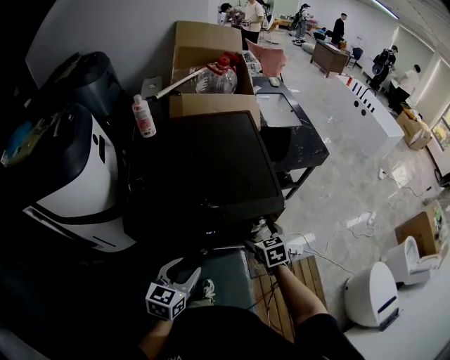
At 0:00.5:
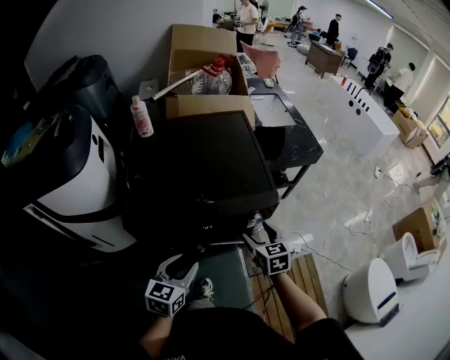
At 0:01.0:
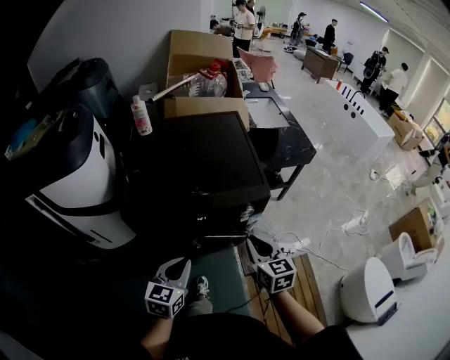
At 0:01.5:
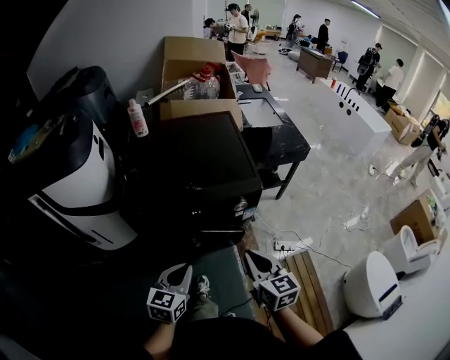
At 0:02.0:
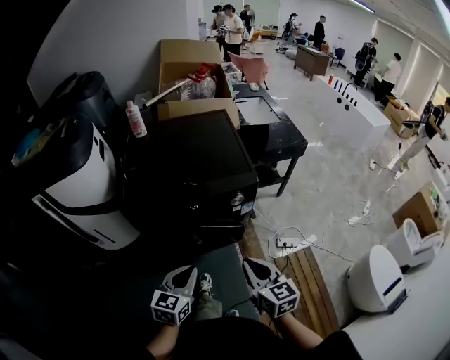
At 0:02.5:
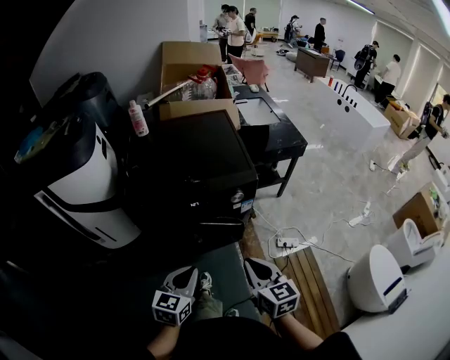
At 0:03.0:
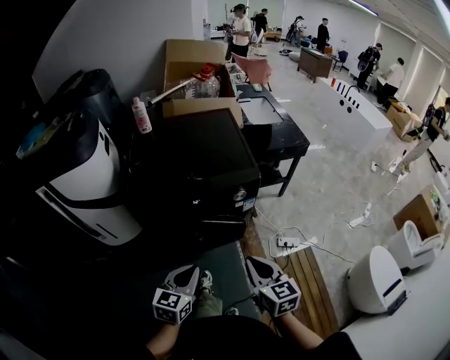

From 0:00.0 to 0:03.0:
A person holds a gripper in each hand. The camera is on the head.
From 0:00.0 to 0:01.5: The left gripper is displaced backward by some 10 cm, and closes its fingers. Meanwhile the right gripper travels backward and upward by about 25 cm, swivels roughly 30 degrees, and closes up.
From 0:01.5 to 0:03.0: Both grippers move backward, about 5 cm.

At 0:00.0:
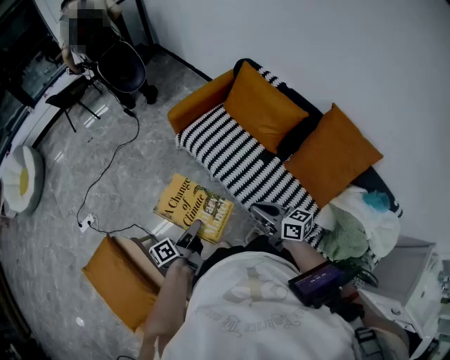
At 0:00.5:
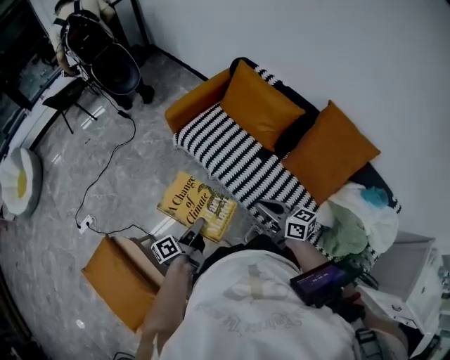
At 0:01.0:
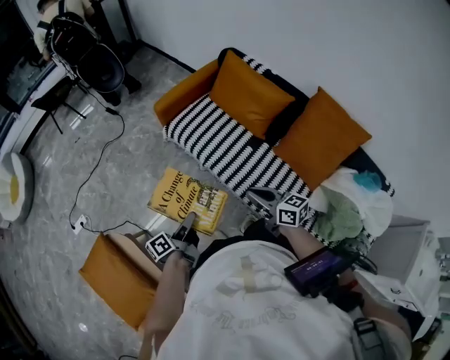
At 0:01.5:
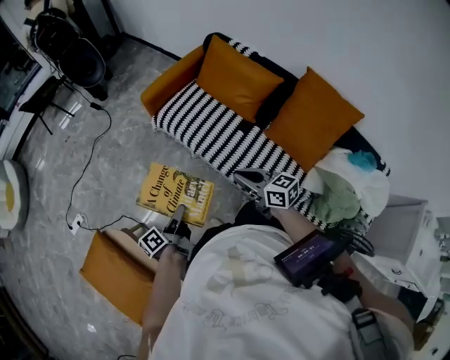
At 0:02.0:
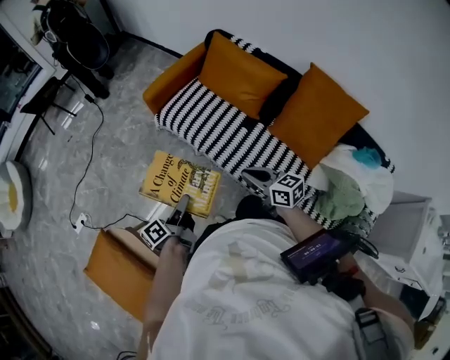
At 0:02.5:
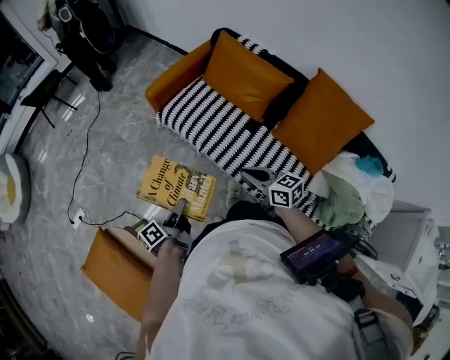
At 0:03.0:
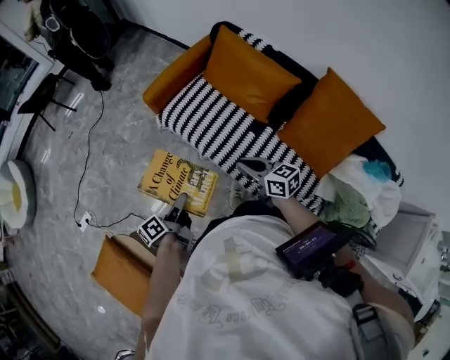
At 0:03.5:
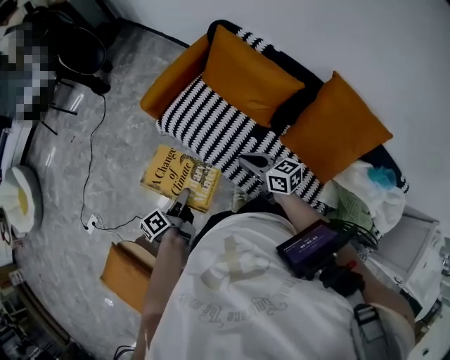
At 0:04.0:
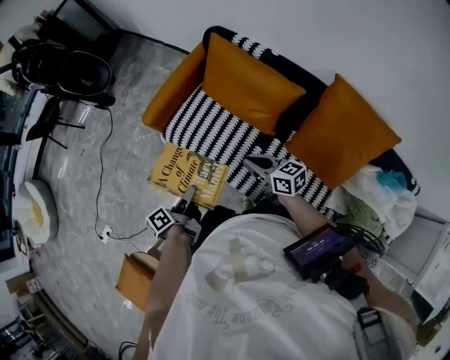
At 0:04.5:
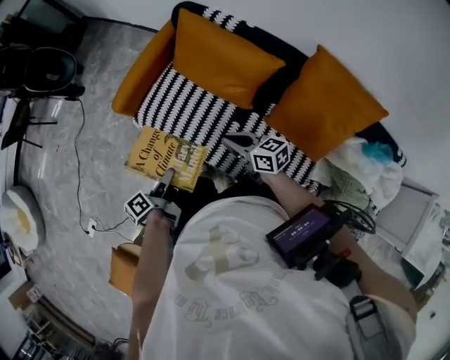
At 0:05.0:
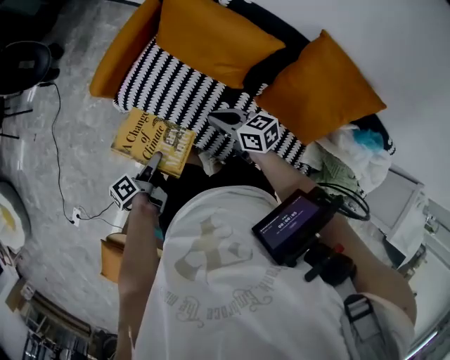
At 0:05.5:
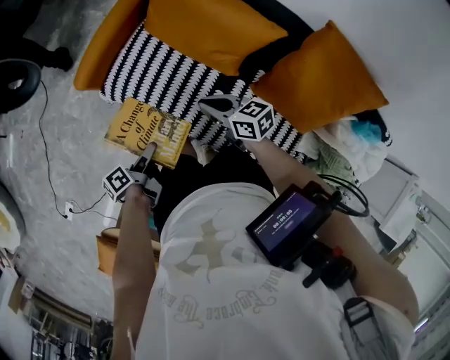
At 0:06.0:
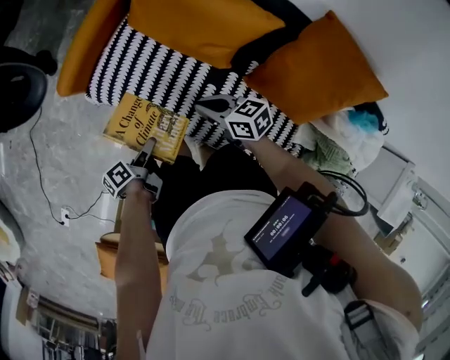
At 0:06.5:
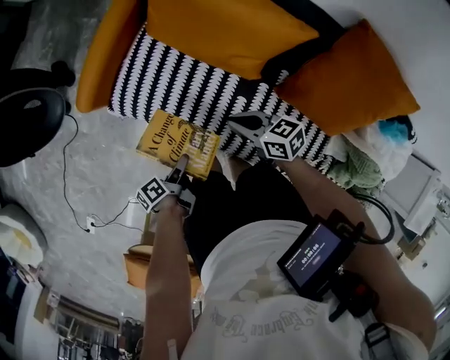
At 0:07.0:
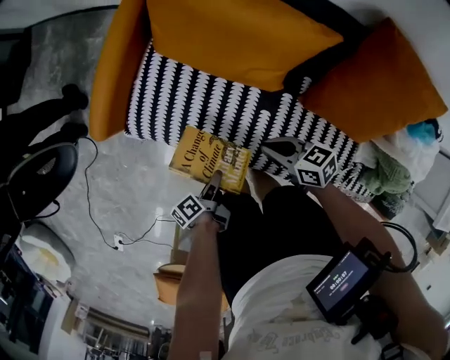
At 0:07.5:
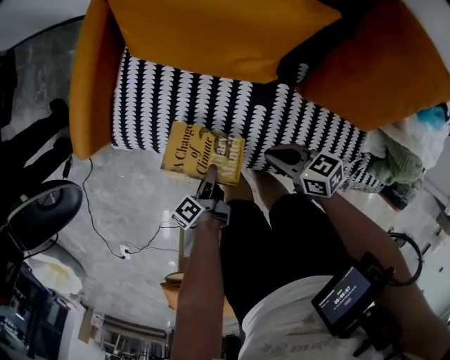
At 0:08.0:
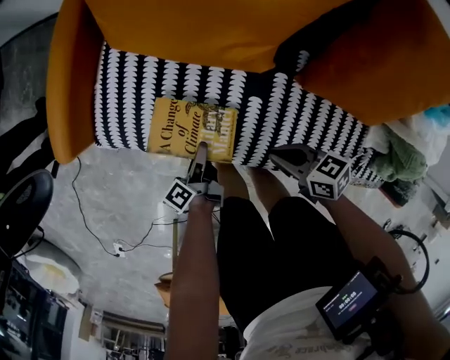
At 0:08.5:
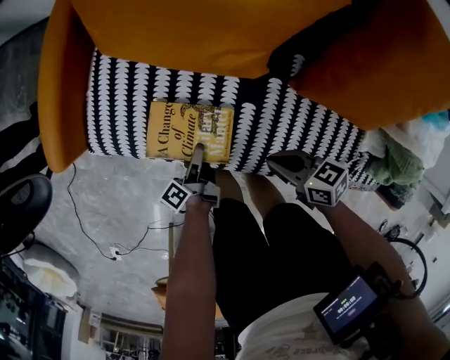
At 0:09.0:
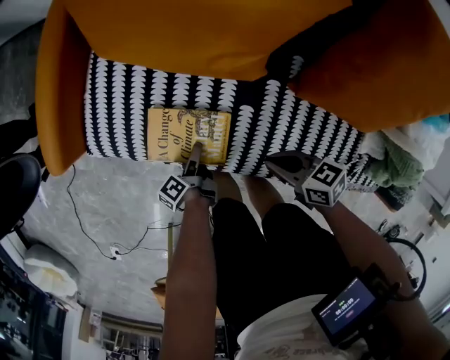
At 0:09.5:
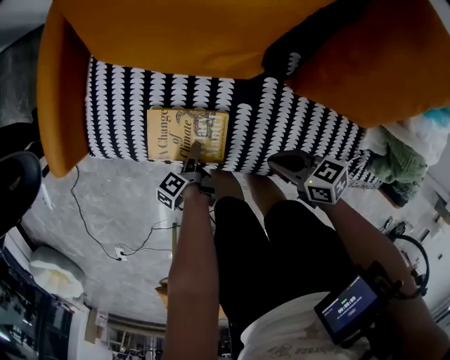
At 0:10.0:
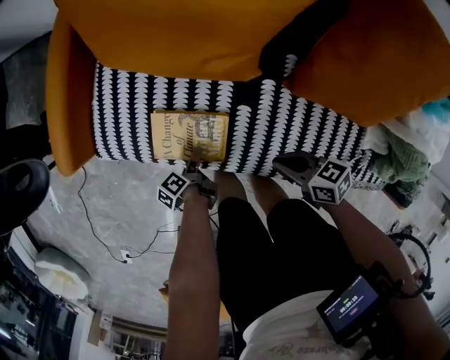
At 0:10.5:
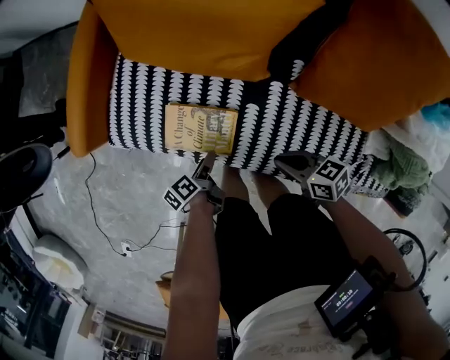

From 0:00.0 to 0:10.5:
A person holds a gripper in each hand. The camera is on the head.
From 0:02.0 to 0:04.0: The right gripper moves approximately 25 cm.
From 0:04.0 to 0:06.5: The right gripper goes about 15 cm downward.
From 0:06.5 to 0:08.5: The right gripper shifts some 15 cm downward.

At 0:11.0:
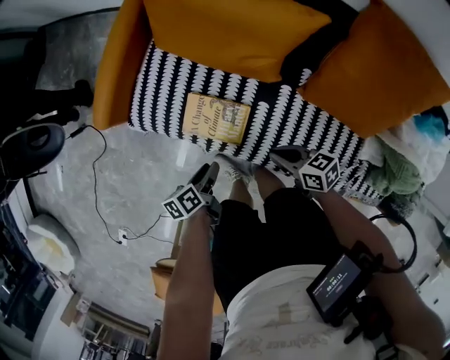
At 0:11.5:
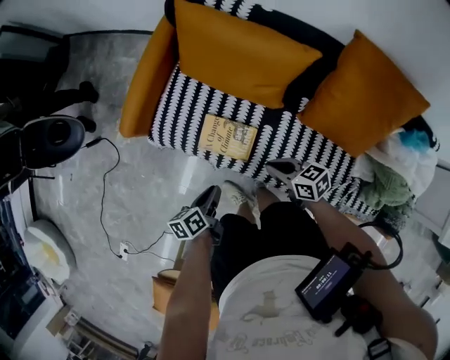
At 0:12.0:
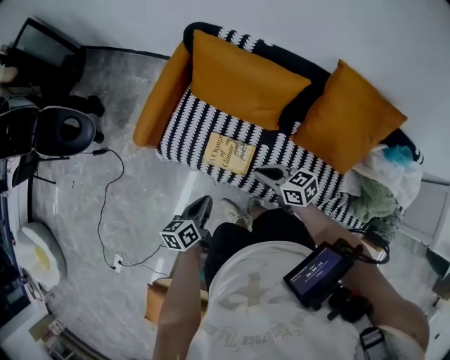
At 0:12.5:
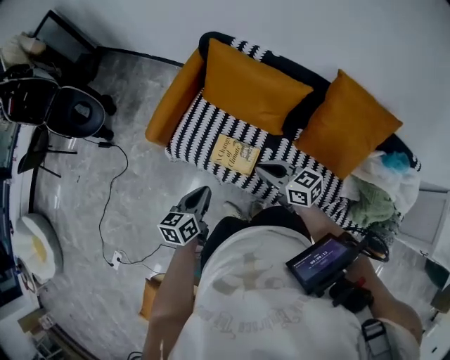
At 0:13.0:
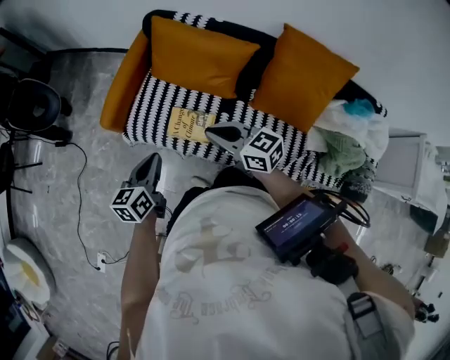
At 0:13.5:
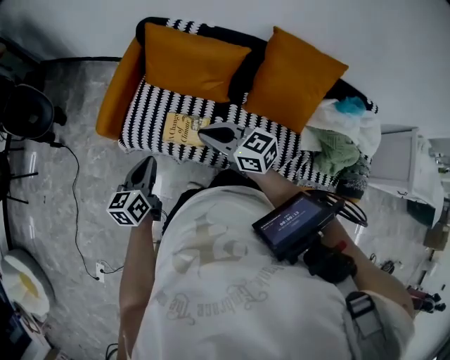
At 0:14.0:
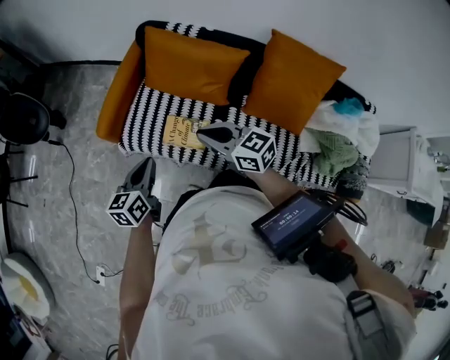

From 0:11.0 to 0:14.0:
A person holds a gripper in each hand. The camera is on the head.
From 0:11.0 to 0:12.5: The right gripper heads upward, covering approximately 25 cm, and swivels roughly 30 degrees.
From 0:12.5 to 0:14.0: The right gripper shifts about 5 cm upward.

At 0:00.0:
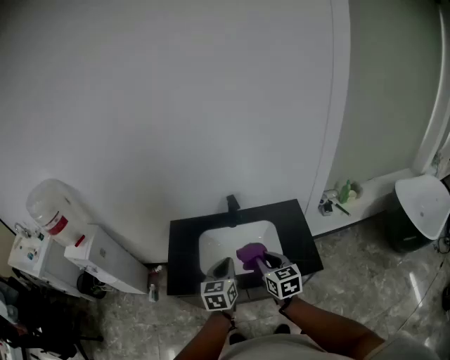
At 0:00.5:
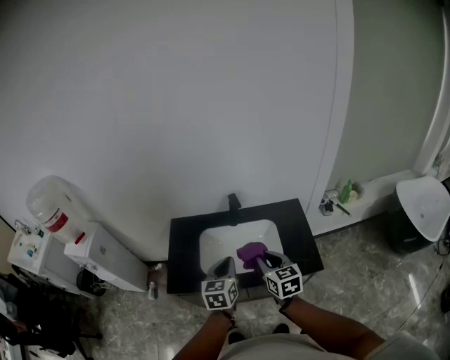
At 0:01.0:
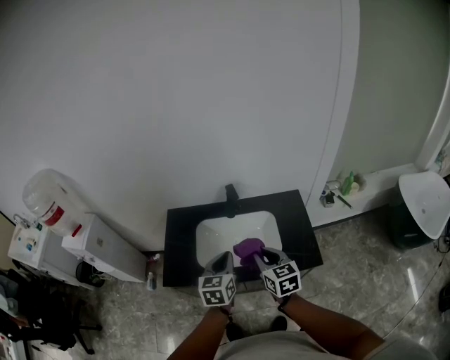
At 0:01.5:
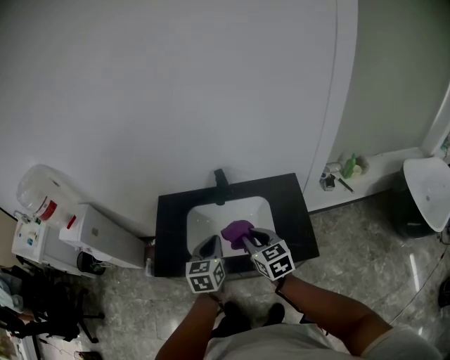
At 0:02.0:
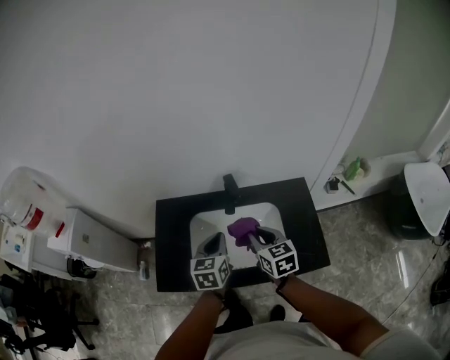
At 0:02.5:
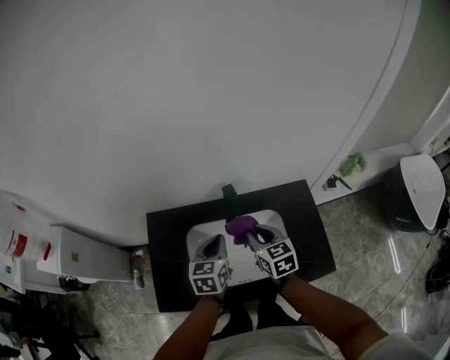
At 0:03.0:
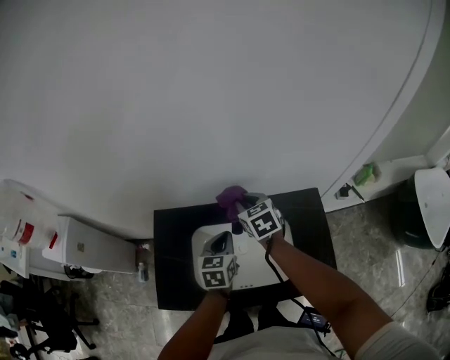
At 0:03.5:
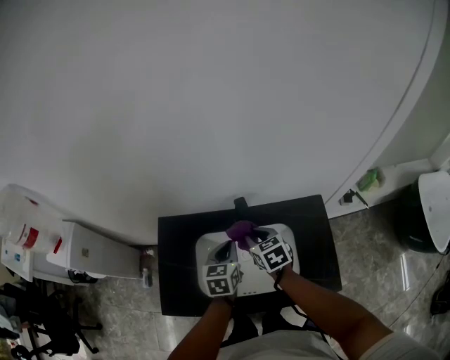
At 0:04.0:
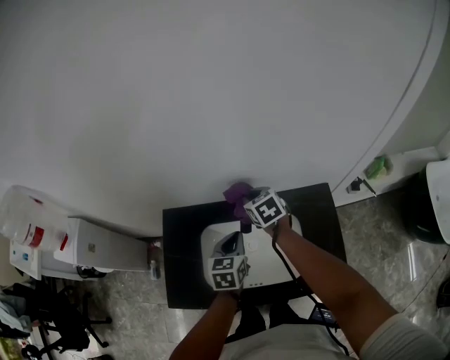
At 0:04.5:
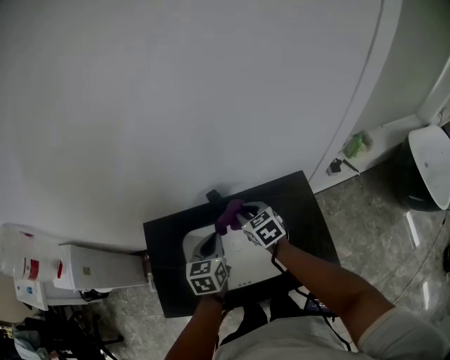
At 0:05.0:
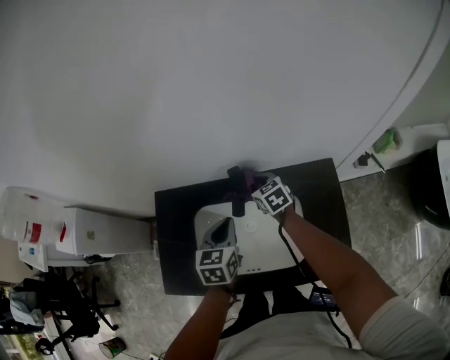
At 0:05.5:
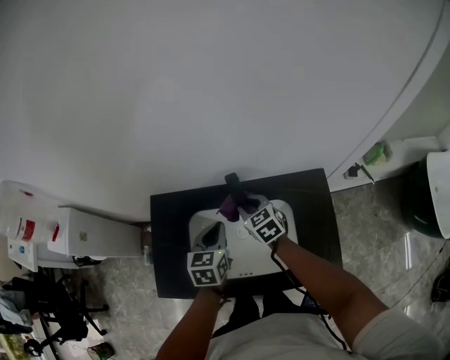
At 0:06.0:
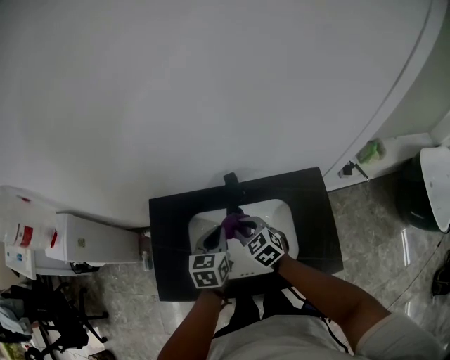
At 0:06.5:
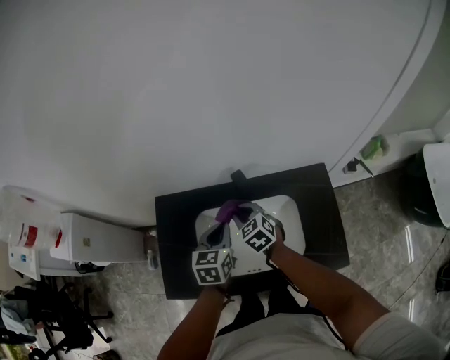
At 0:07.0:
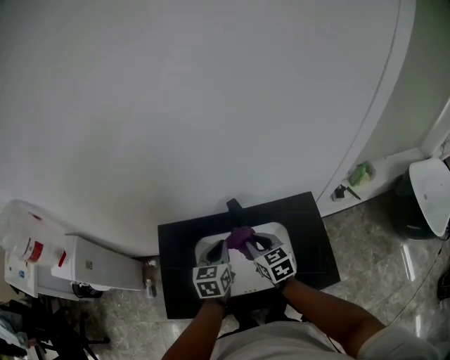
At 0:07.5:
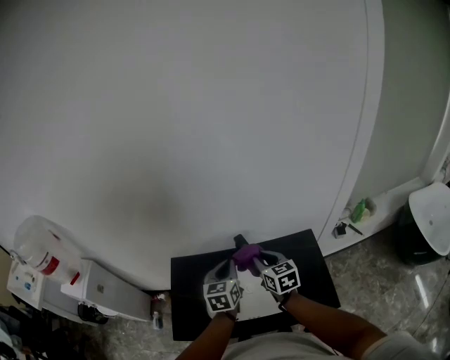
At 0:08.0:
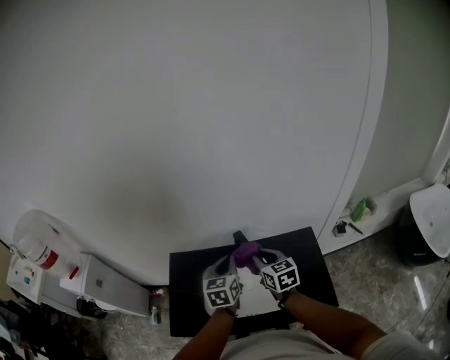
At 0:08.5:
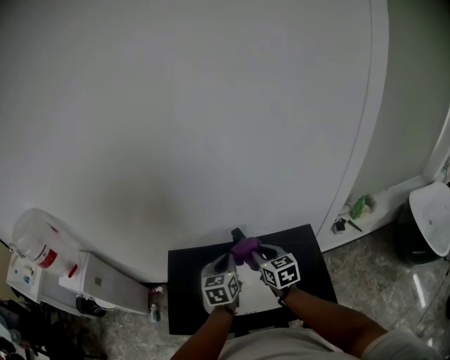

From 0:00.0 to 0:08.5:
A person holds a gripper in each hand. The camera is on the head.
From 0:00.0 to 0:02.0: The two grippers go approximately 15 cm forward and downward.
From 0:02.0 to 0:04.0: The right gripper goes forward and backward, about 25 cm each way, reversing 2 times. Meanwhile the left gripper shifts approximately 15 cm forward and downward.
From 0:04.0 to 0:06.5: The right gripper moves forward and backward over about 15 cm, changing direction 3 times.
From 0:06.5 to 0:08.5: The right gripper goes roughly 20 cm upward and to the right, and turns by some 30 degrees; the left gripper moves upward, some 15 cm.

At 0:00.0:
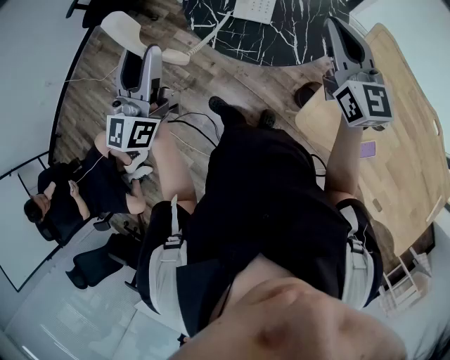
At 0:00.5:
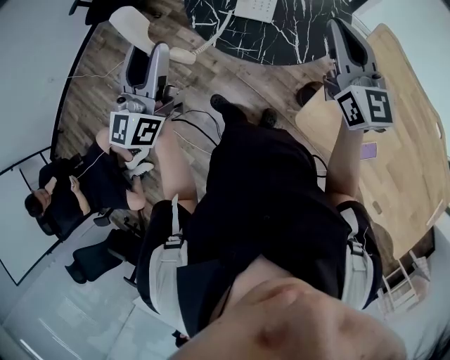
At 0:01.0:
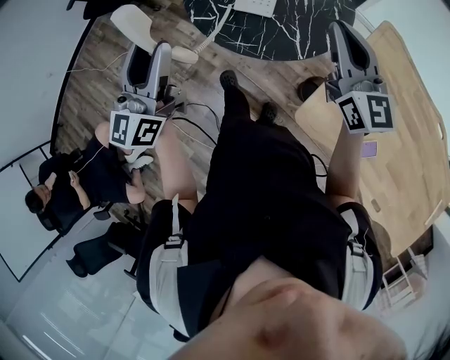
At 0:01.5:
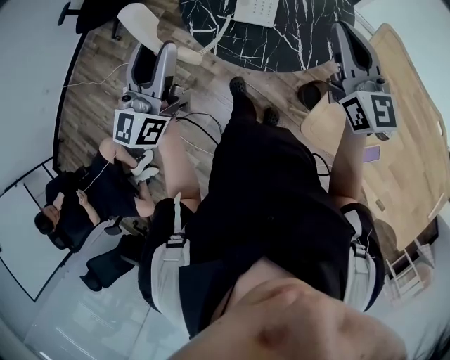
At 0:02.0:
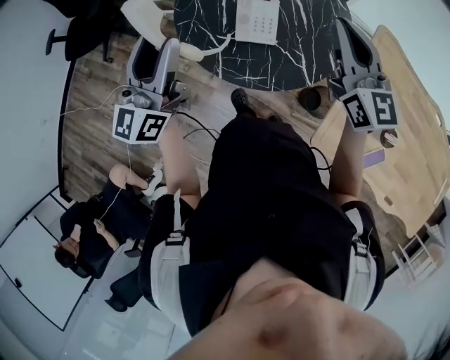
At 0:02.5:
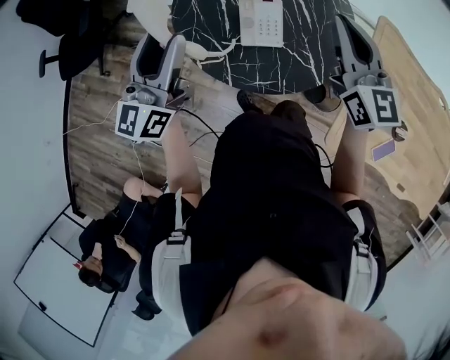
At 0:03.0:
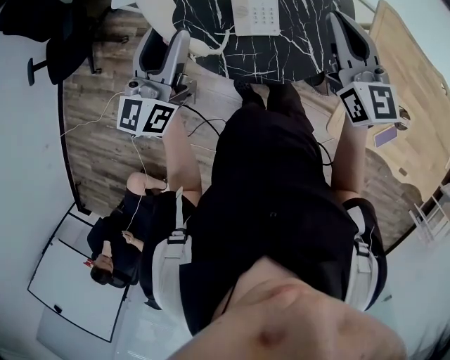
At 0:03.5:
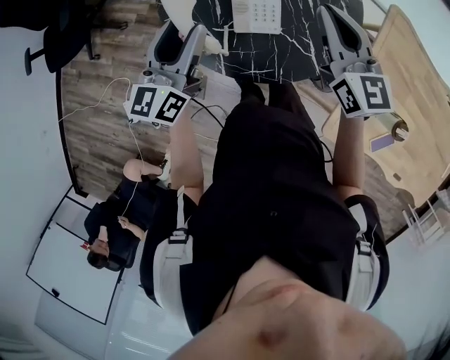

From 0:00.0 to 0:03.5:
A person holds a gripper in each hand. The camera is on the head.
From 0:00.0 to 0:02.0: The grippers both shift forward by about 15 cm.
From 0:02.0 to 0:03.5: Both grippers travel together downward and forward, about 15 cm.
